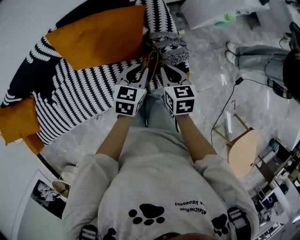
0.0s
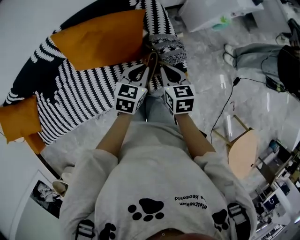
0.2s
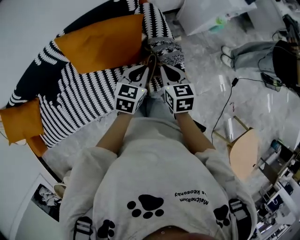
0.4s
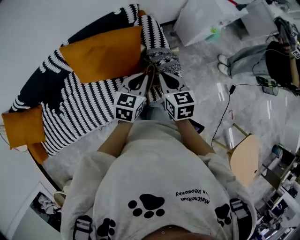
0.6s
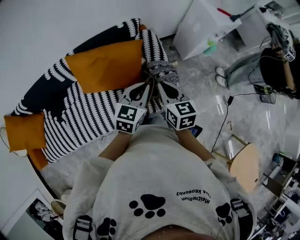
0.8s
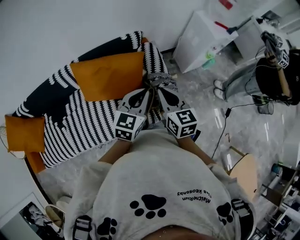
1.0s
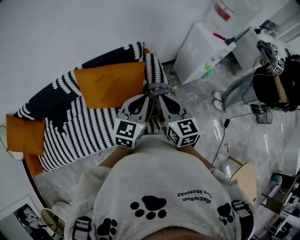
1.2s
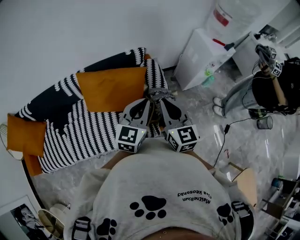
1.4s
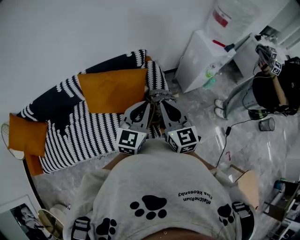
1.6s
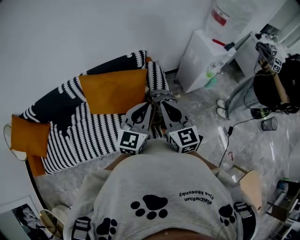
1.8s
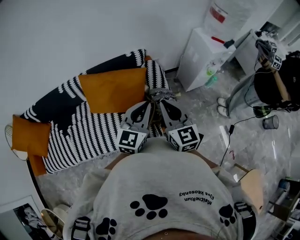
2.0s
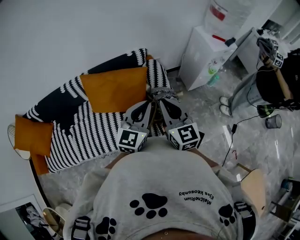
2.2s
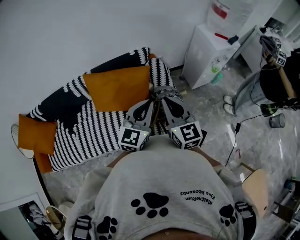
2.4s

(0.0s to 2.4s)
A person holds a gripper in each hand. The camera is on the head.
0.0s - 1.2s: Both grippers travel together upward, roughly 25 cm. The left gripper swivels approximately 30 degrees, while the right gripper points its fingers about 30 degrees further upward.
1.2s - 2.4s: The left gripper moves some 5 cm. The right gripper moves roughly 5 cm.

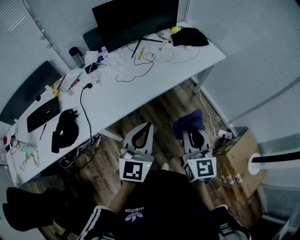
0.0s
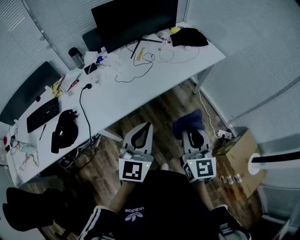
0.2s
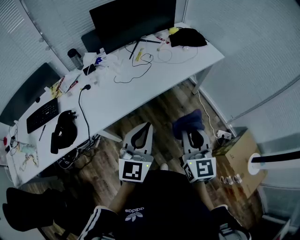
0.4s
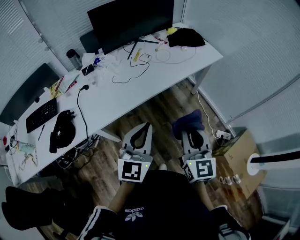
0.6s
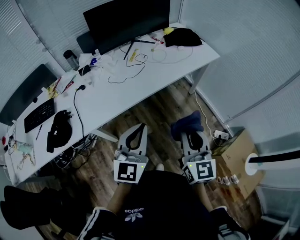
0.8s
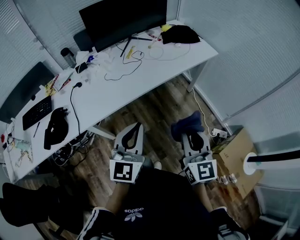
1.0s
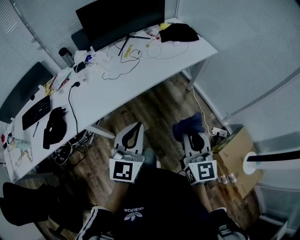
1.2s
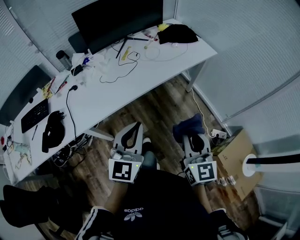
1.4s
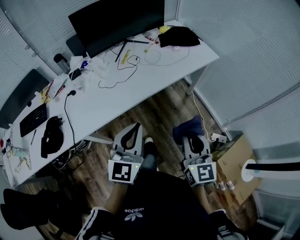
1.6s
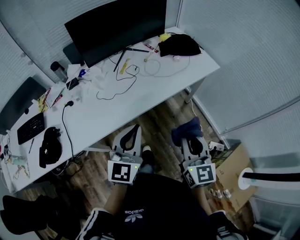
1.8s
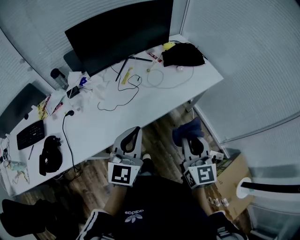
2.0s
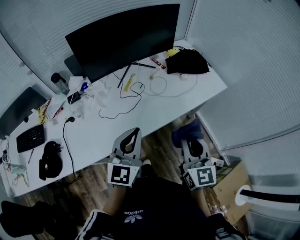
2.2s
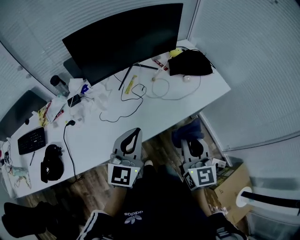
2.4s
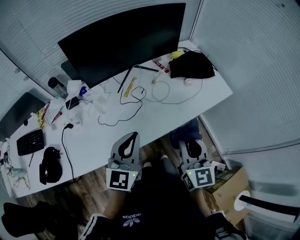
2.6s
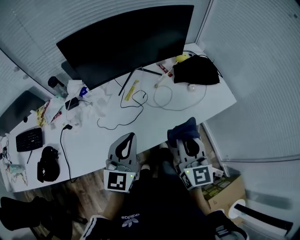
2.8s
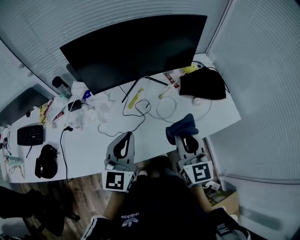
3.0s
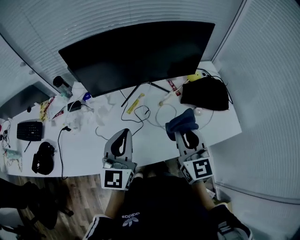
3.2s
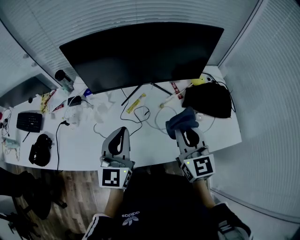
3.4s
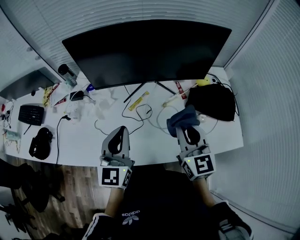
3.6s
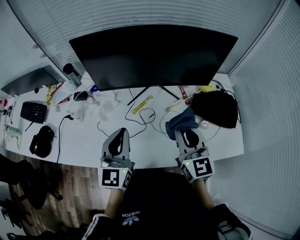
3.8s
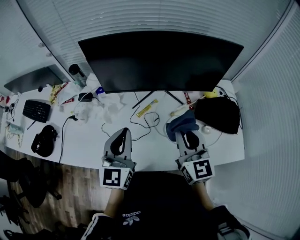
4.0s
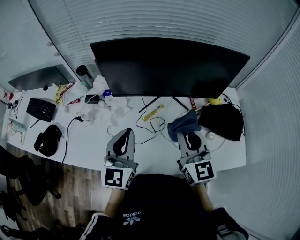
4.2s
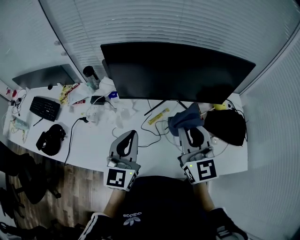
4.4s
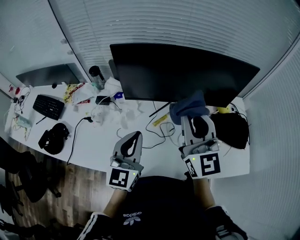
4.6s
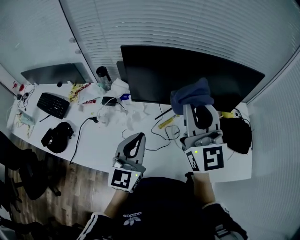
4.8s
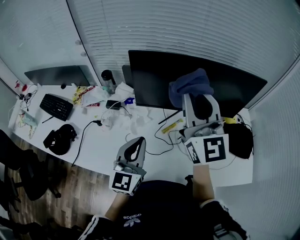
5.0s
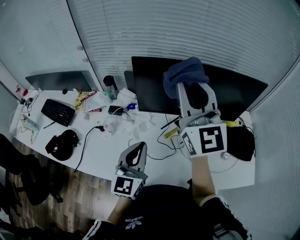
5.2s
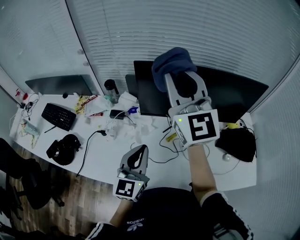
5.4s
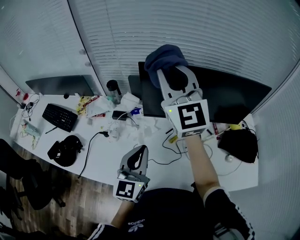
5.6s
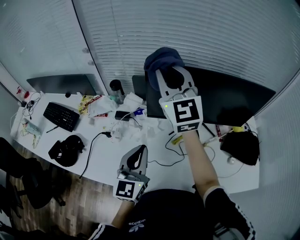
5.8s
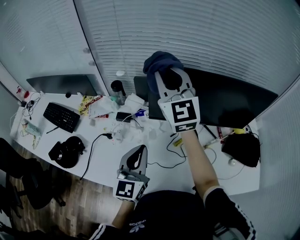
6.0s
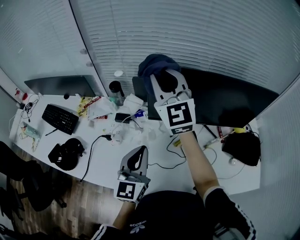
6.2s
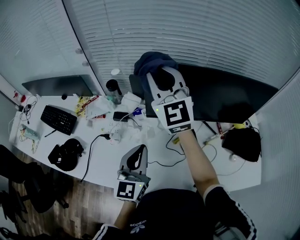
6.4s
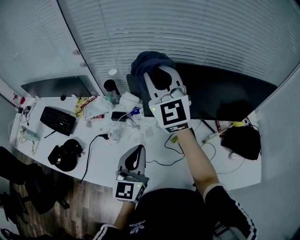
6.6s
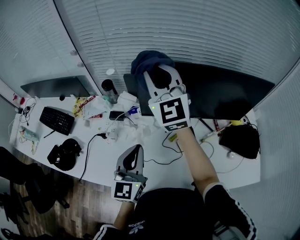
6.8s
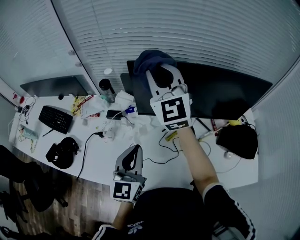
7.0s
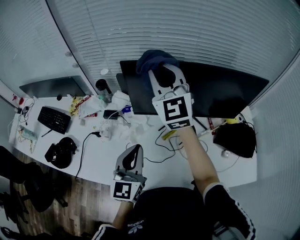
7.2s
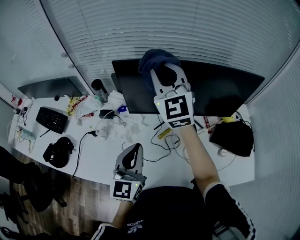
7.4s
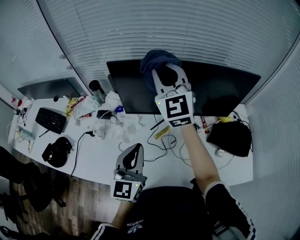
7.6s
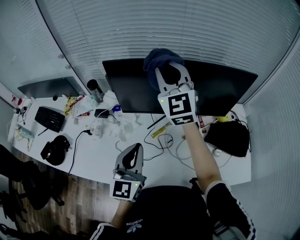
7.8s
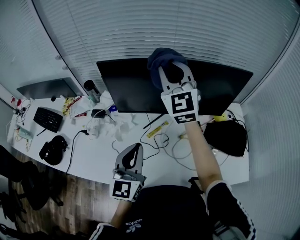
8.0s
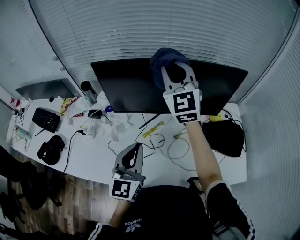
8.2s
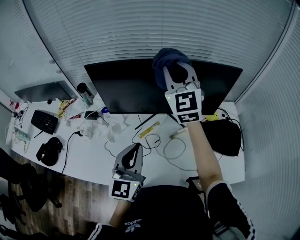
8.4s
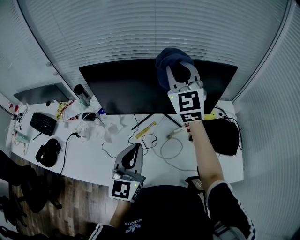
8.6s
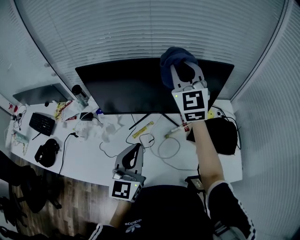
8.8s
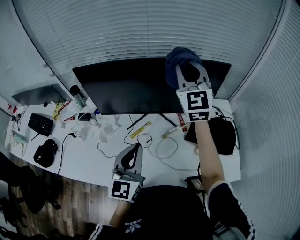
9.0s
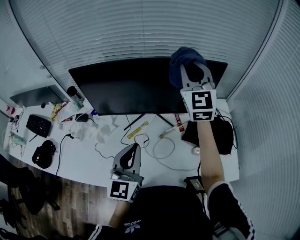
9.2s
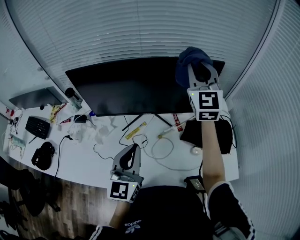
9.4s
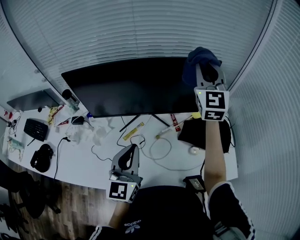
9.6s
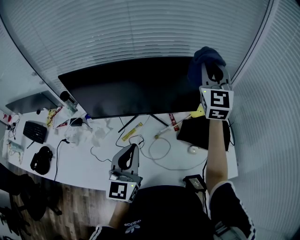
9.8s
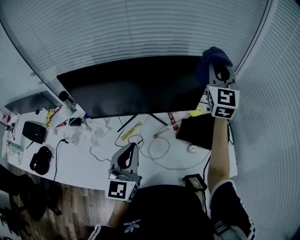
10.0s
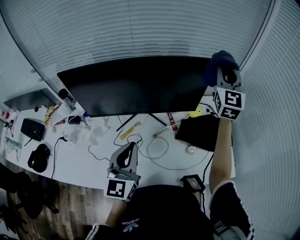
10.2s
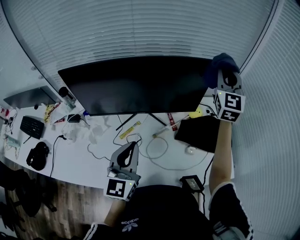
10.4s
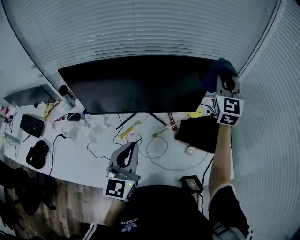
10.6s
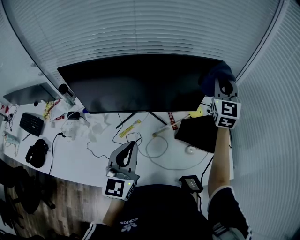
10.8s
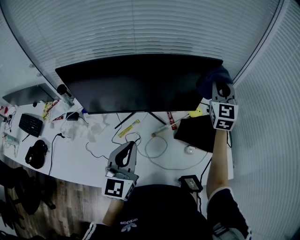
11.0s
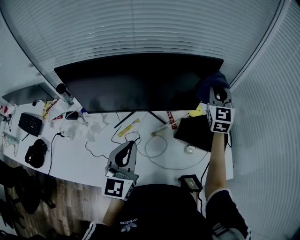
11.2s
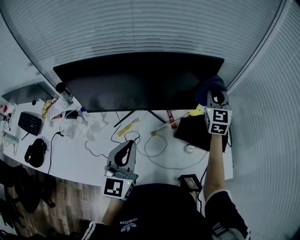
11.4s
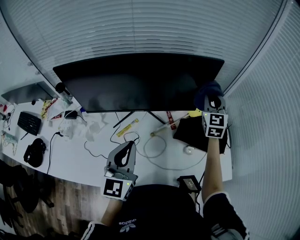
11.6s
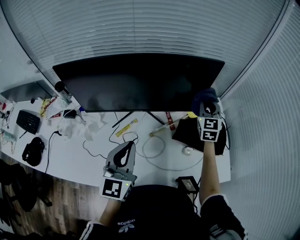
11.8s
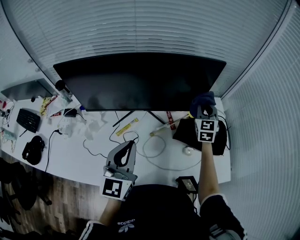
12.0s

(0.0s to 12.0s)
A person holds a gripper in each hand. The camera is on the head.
0.0s - 1.6s: The right gripper goes approximately 10 cm to the right. The left gripper moves to the right and forward, about 10 cm.
1.6s - 3.0s: Both grippers move forward, some 35 cm.
3.0s - 4.4s: The right gripper goes about 15 cm forward and upward, and turns by some 20 degrees, while the left gripper is displaced forward by some 10 cm.
4.4s - 6.0s: The right gripper shifts some 35 cm to the left, forward and upward. Meanwhile the left gripper goes about 10 cm to the left.
6.0s - 7.6s: Both grippers move to the right, roughly 10 cm.
7.6s - 9.0s: The right gripper shifts some 25 cm to the right. The left gripper moves to the right, approximately 15 cm.
9.0s - 10.4s: The right gripper shifts about 20 cm to the right.
10.4s - 12.0s: The right gripper is displaced downward by about 25 cm, and changes its angle by some 20 degrees.

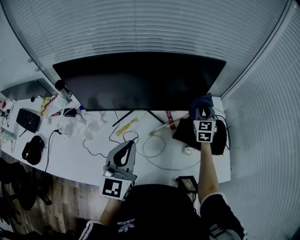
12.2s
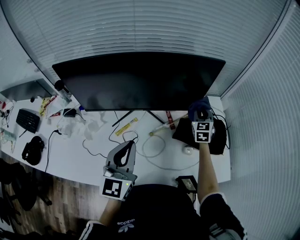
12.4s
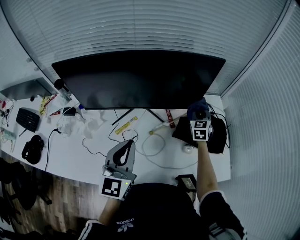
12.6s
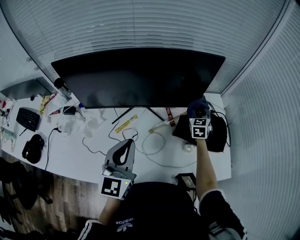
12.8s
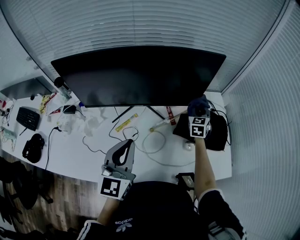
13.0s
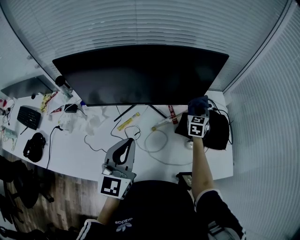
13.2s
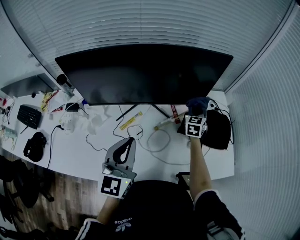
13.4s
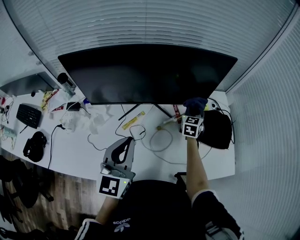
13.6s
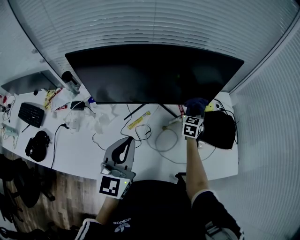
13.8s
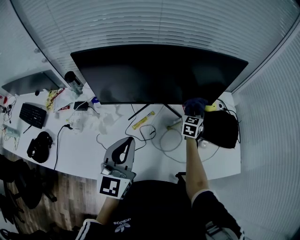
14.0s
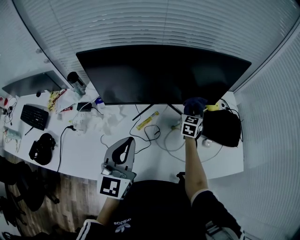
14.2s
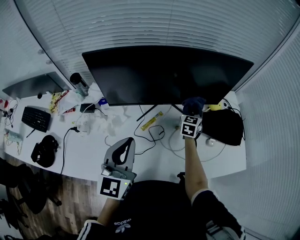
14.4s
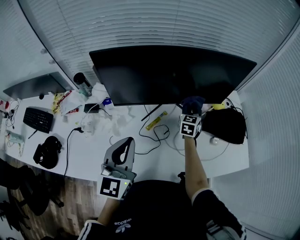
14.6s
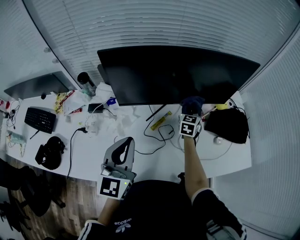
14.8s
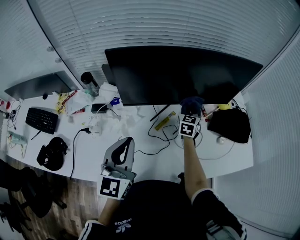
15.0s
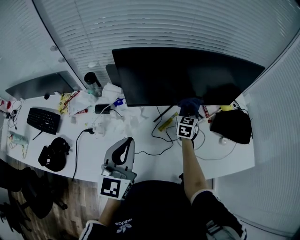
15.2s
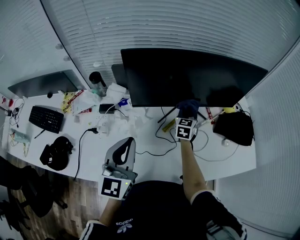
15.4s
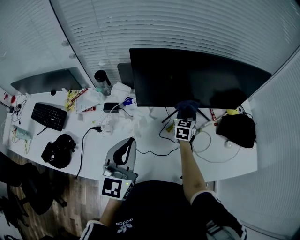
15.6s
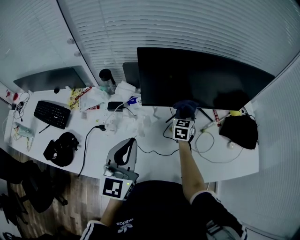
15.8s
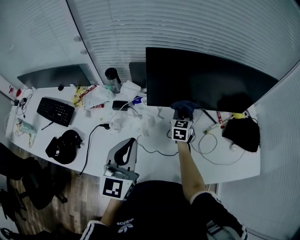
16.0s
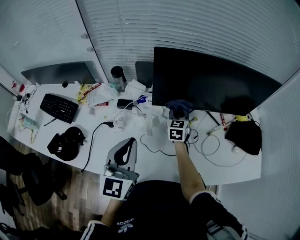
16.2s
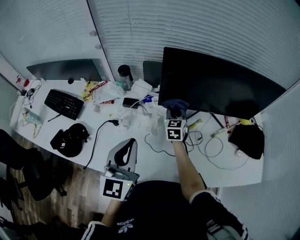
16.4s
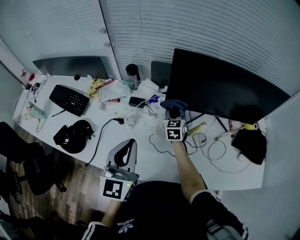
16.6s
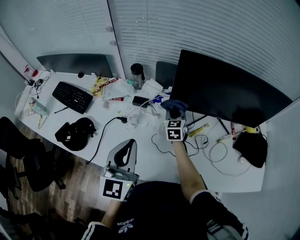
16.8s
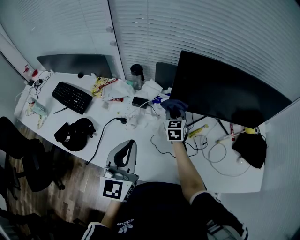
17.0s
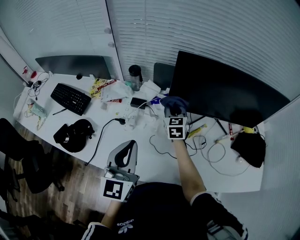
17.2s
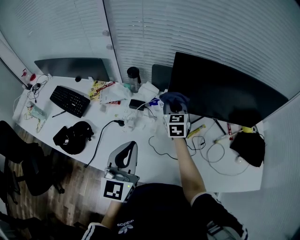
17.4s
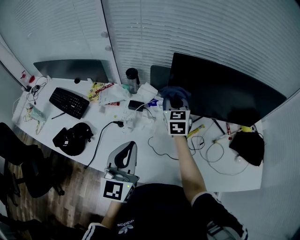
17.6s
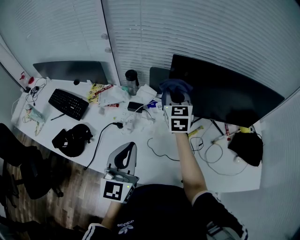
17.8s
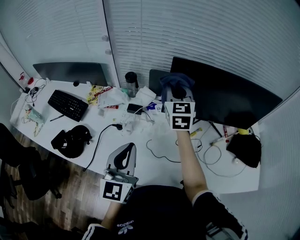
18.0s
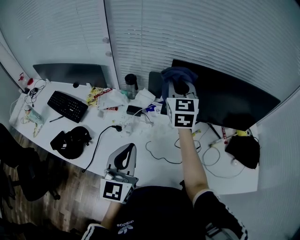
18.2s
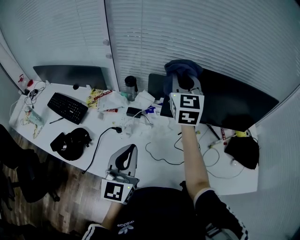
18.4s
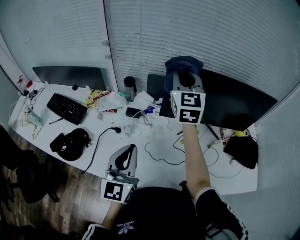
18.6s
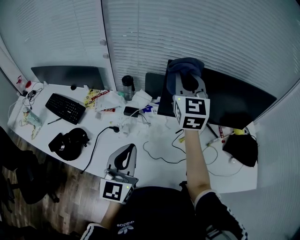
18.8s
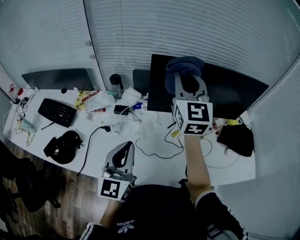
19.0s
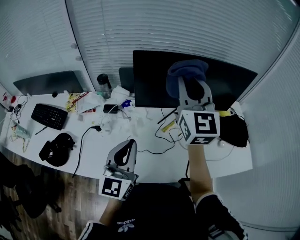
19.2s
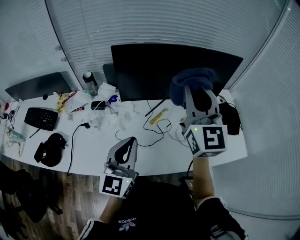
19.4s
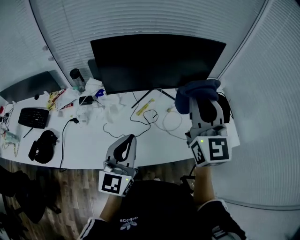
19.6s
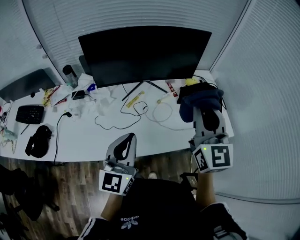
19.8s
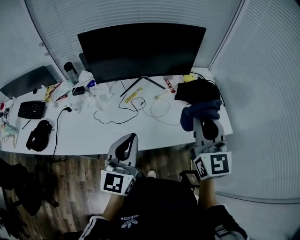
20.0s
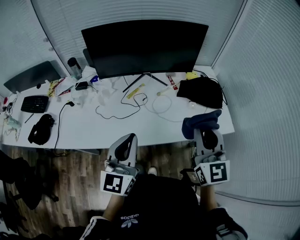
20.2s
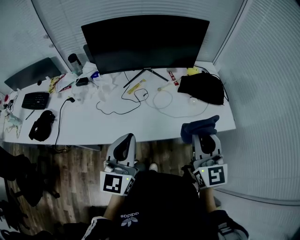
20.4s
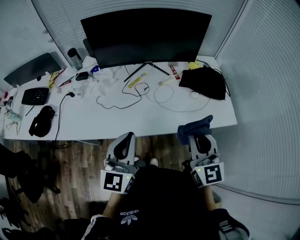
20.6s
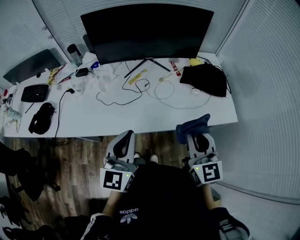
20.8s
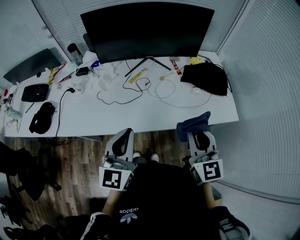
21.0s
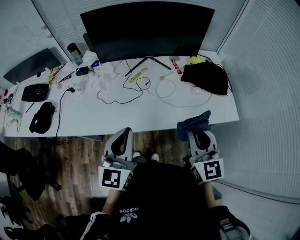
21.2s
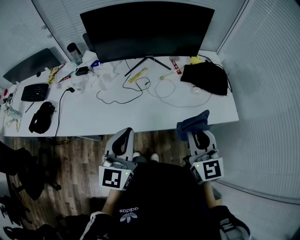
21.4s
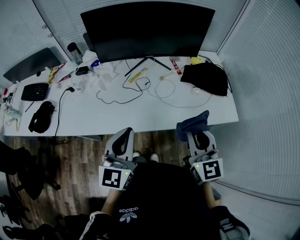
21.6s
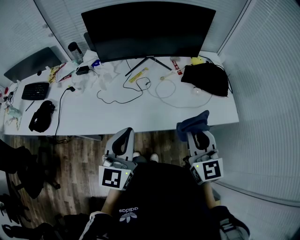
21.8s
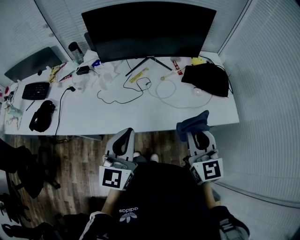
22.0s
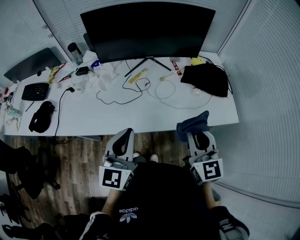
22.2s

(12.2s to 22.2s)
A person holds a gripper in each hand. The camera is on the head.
12.2s - 13.6s: The right gripper moves downward and to the left, approximately 10 cm.
13.6s - 15.0s: Both grippers move to the left, approximately 20 cm.
15.0s - 16.4s: The left gripper heads to the left and backward, covering some 15 cm; the right gripper heads to the left, covering approximately 25 cm, and changes its angle by about 20 degrees.
16.4s - 18.0s: The right gripper heads upward, covering roughly 20 cm.
18.0s - 19.4s: The right gripper moves to the right, backward and upward, roughly 30 cm, and swivels about 20 degrees, while the left gripper is displaced to the right by about 15 cm.
19.4s - 20.8s: The left gripper goes some 20 cm backward and to the right. The right gripper heads backward, to the right and downward, covering some 35 cm.
20.8s - 22.2s: The grippers move only a little.
